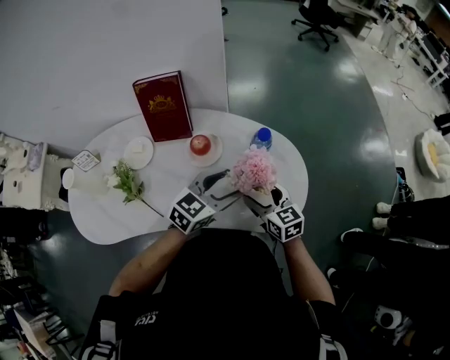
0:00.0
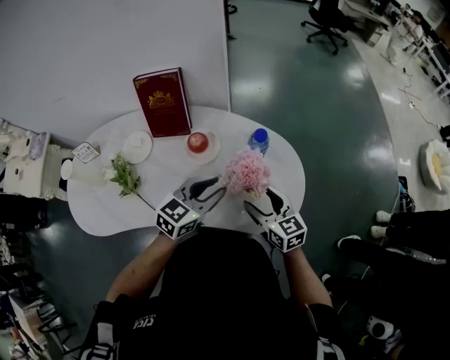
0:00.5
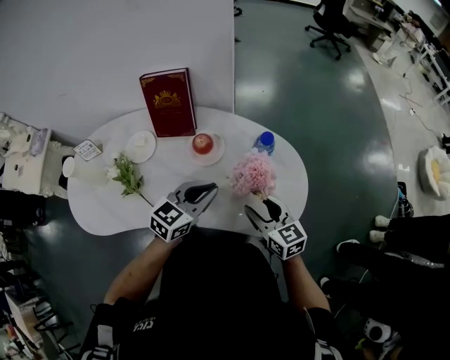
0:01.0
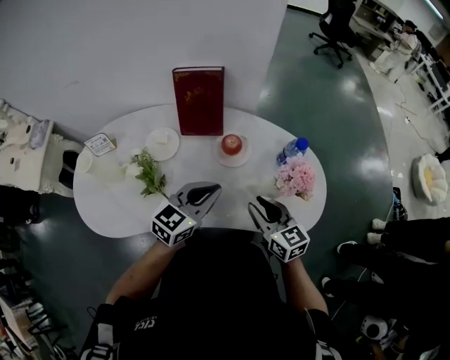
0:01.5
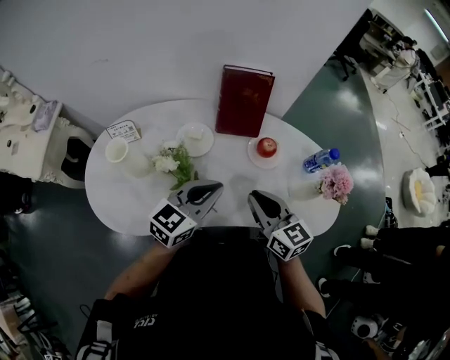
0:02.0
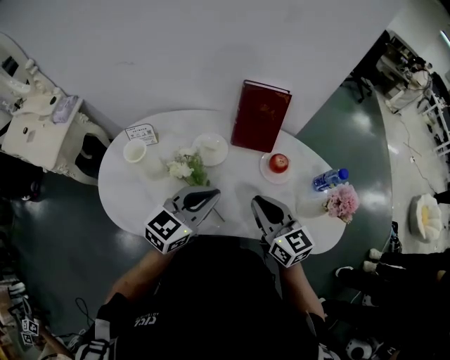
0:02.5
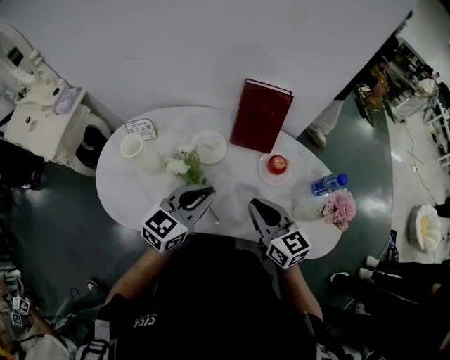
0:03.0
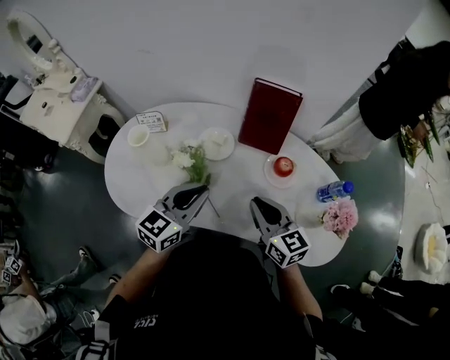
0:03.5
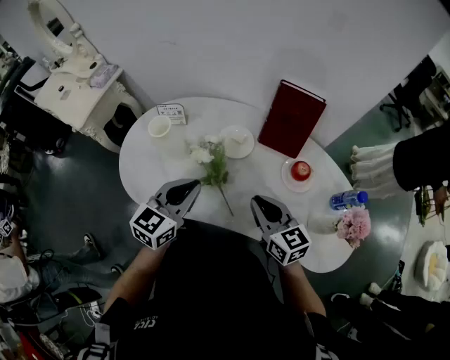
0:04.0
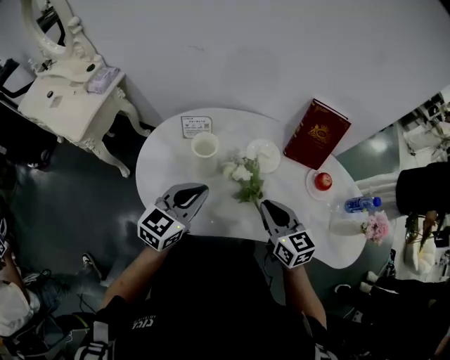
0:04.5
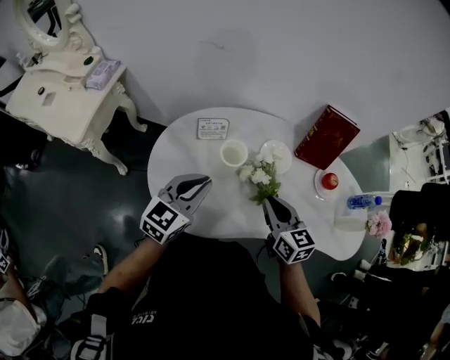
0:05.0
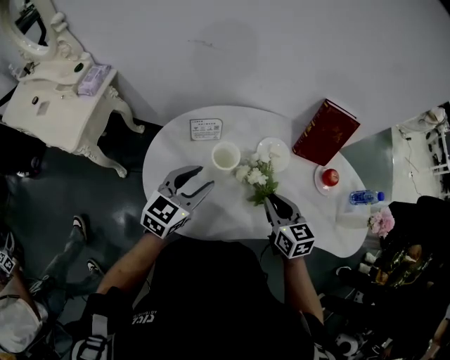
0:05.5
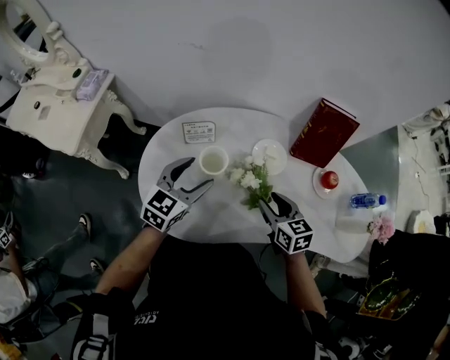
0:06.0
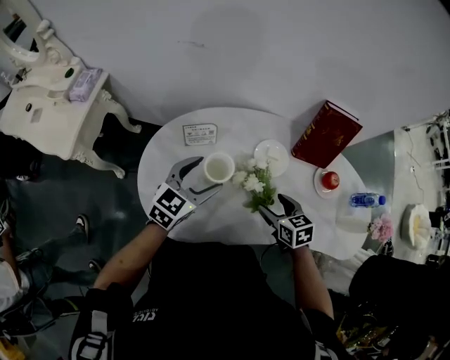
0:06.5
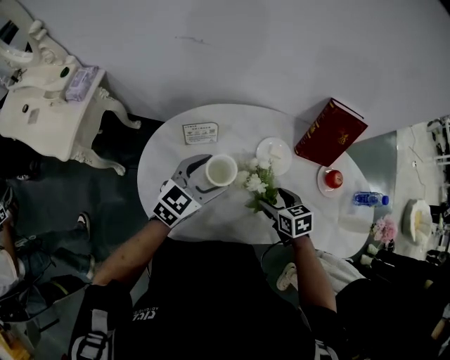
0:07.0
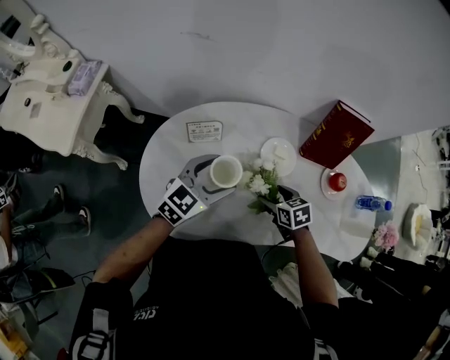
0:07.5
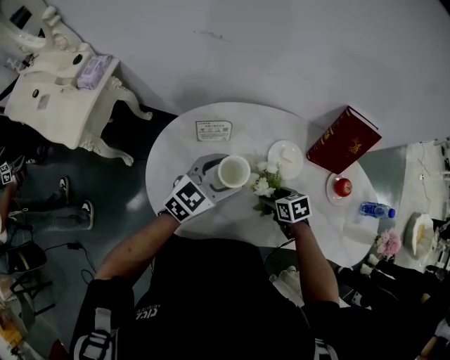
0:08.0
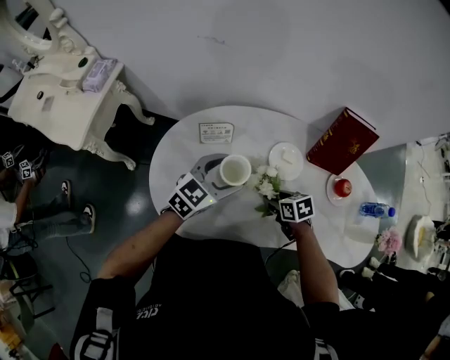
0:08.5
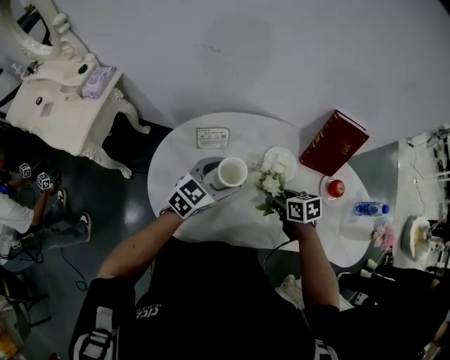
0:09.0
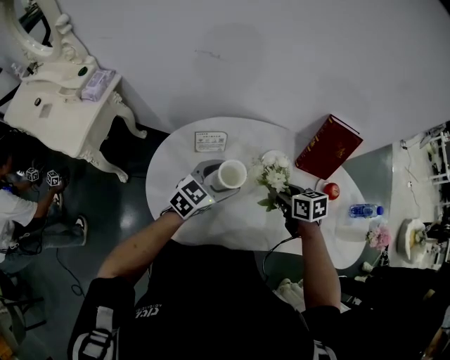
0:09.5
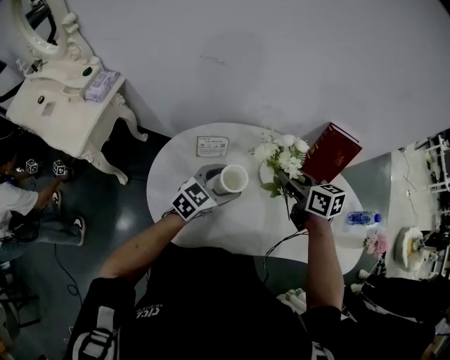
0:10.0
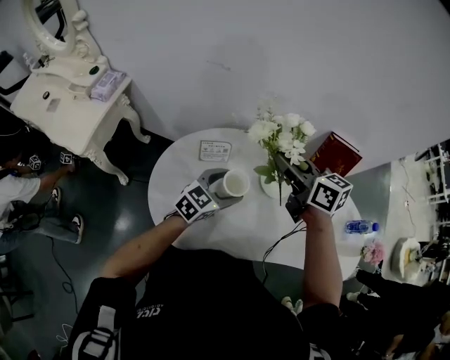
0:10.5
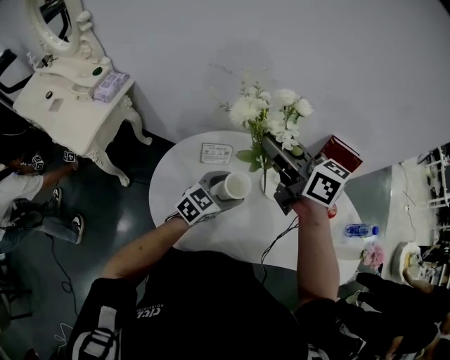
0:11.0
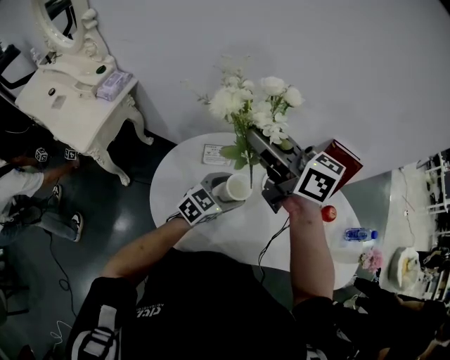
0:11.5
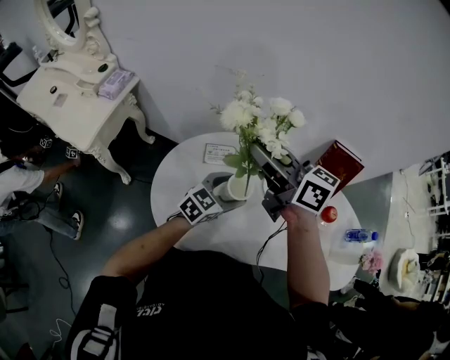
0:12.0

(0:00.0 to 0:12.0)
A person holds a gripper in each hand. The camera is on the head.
0:00.0 - 0:02.0: The two grippers go about 30 cm to the left. The left gripper closes up. The right gripper closes its fingers.
0:02.0 - 0:04.0: The right gripper moves some 5 cm, while the left gripper heads to the left, covering roughly 10 cm, and turns by about 30 degrees.
0:04.0 - 0:06.0: The right gripper heads to the left, downward and forward, covering roughly 20 cm, and turns by about 20 degrees. Meanwhile the left gripper goes approximately 25 cm to the left and forward, and opens its fingers.
0:06.0 - 0:08.0: The left gripper moves approximately 5 cm. The right gripper travels downward by roughly 15 cm, swivels some 30 degrees, and opens its fingers.
0:08.0 - 0:10.0: The right gripper travels upward by approximately 25 cm, points its fingers about 30 degrees further upward, and closes.
0:10.0 - 0:12.0: The right gripper is displaced to the left and upward by roughly 25 cm, and swivels approximately 30 degrees.

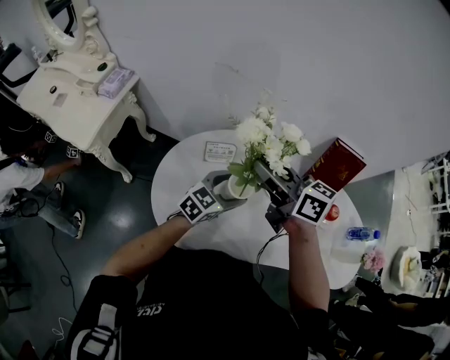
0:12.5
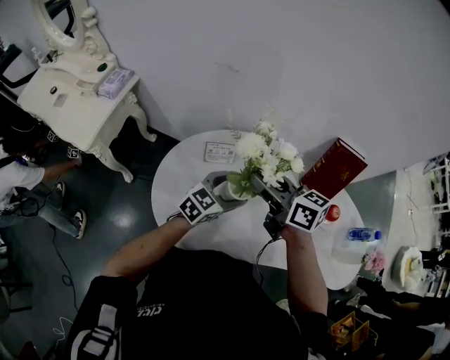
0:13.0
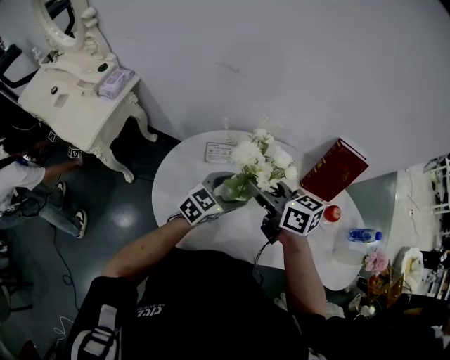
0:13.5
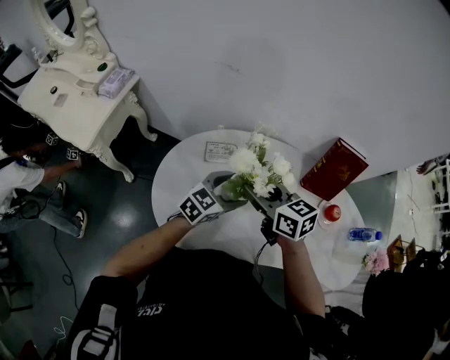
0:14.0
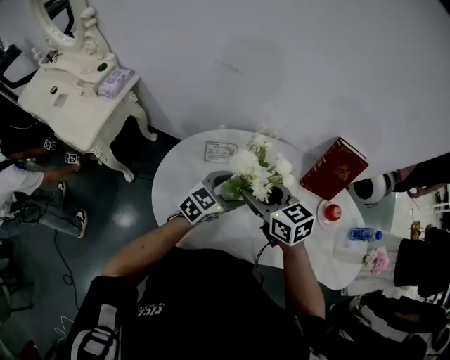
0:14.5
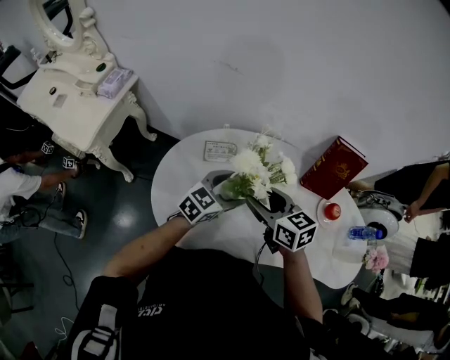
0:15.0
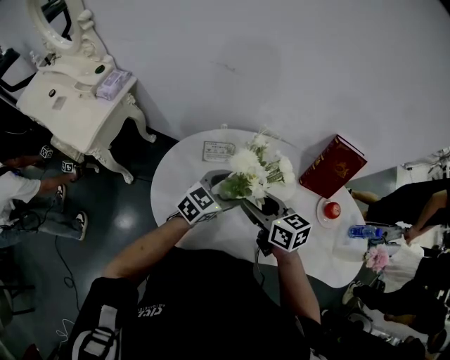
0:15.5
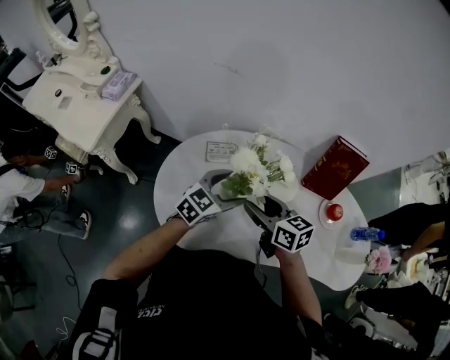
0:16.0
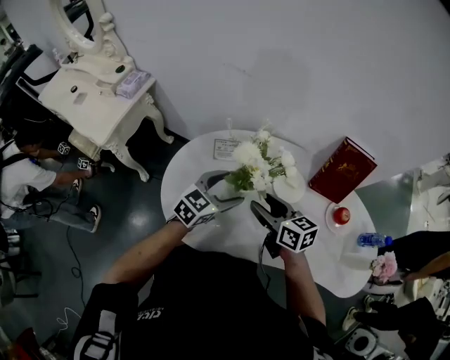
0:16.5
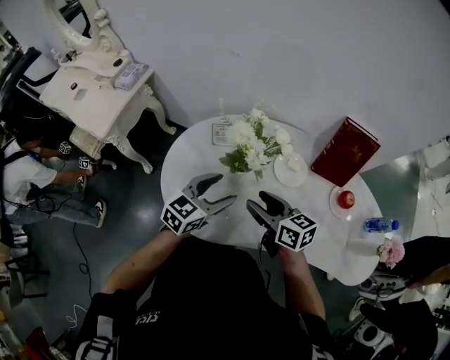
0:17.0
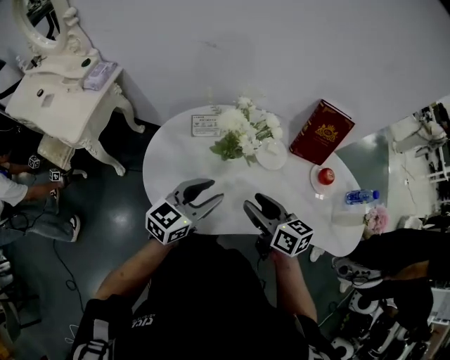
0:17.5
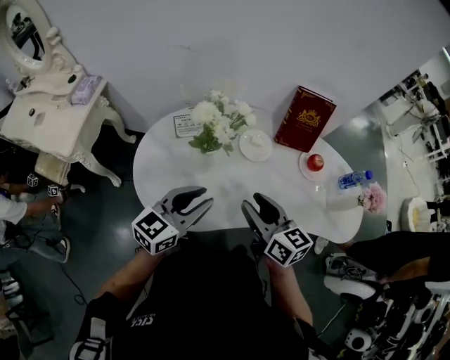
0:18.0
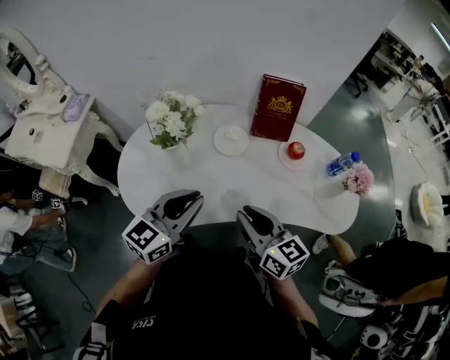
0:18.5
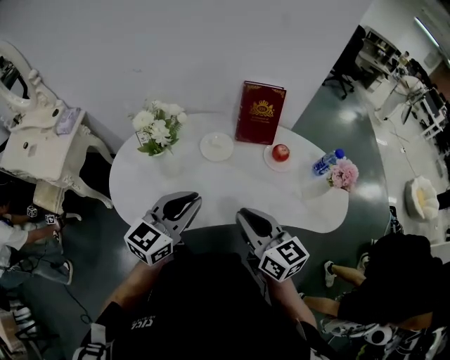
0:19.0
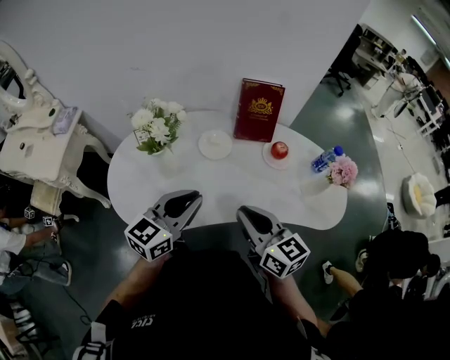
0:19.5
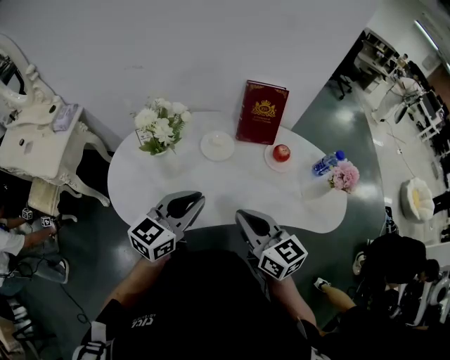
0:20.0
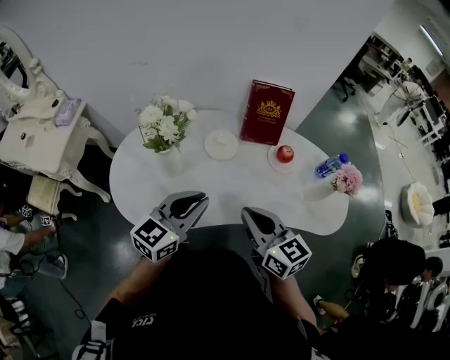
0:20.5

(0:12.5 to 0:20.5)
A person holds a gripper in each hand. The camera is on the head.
0:12.5 - 0:14.5: The right gripper moves downward, approximately 10 cm, and swivels some 30 degrees.
0:14.5 - 0:16.5: The right gripper changes place by some 5 cm.
0:16.5 - 0:18.5: The right gripper shifts about 25 cm backward and to the right, turns by about 20 degrees, and closes its fingers; the left gripper shifts roughly 25 cm backward, upward and to the right, and closes its fingers.
0:18.5 - 0:20.5: The grippers stay close to where they were, moving slightly.

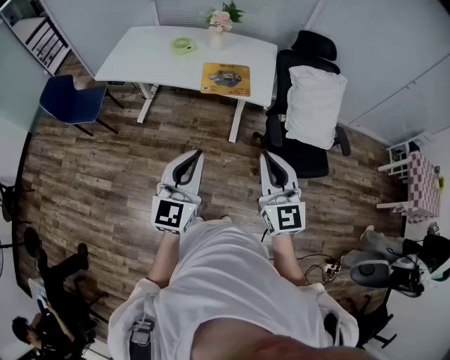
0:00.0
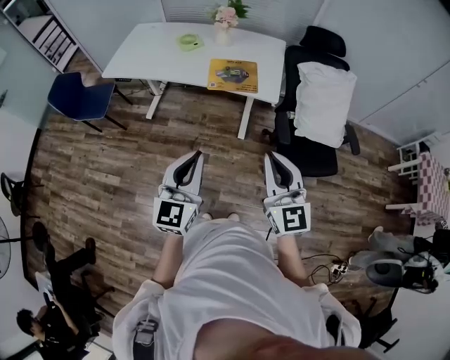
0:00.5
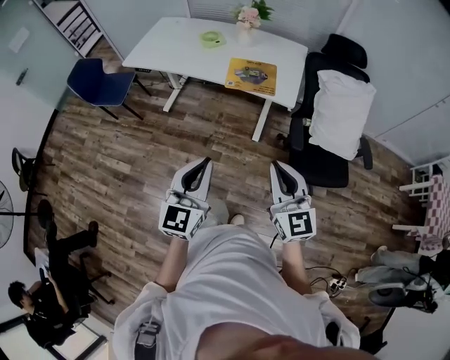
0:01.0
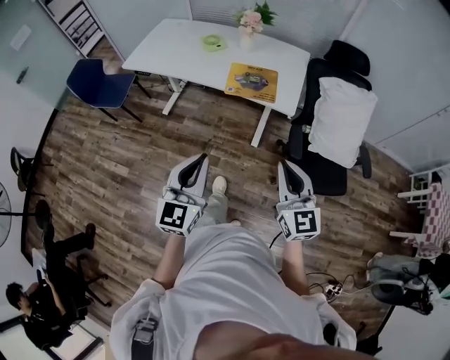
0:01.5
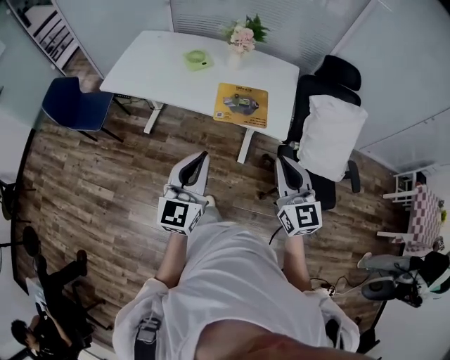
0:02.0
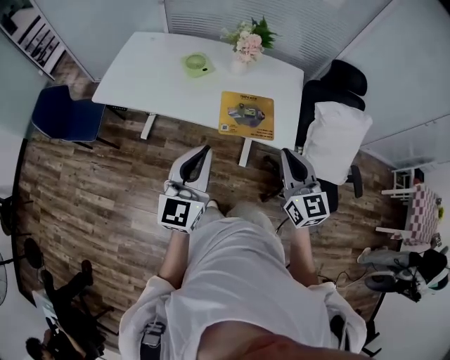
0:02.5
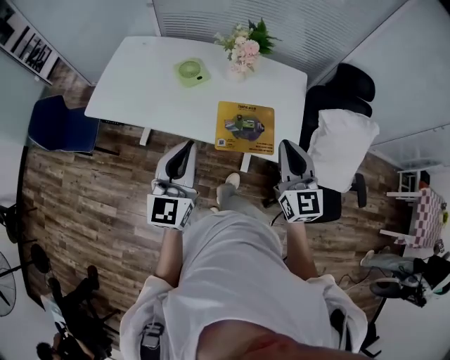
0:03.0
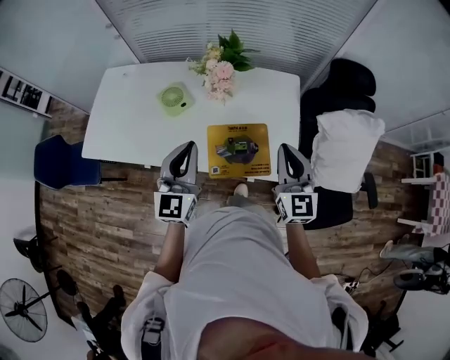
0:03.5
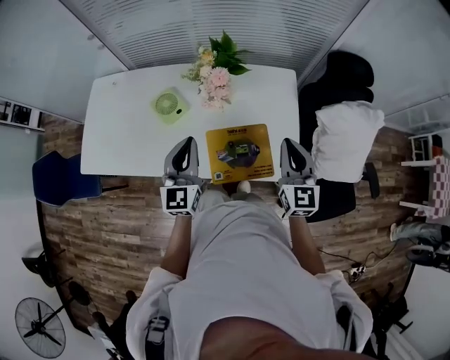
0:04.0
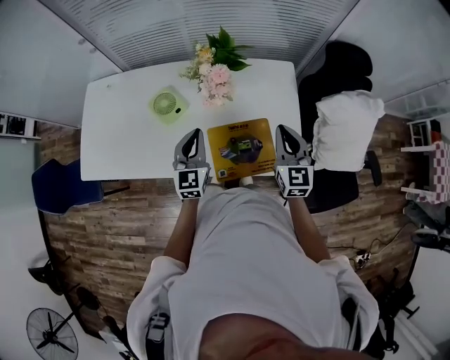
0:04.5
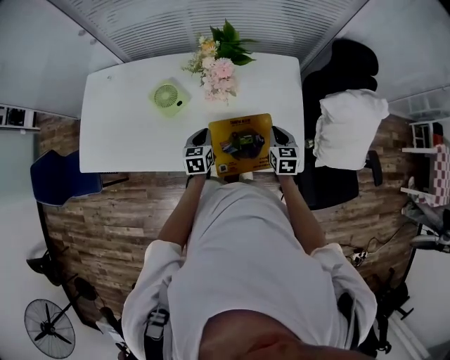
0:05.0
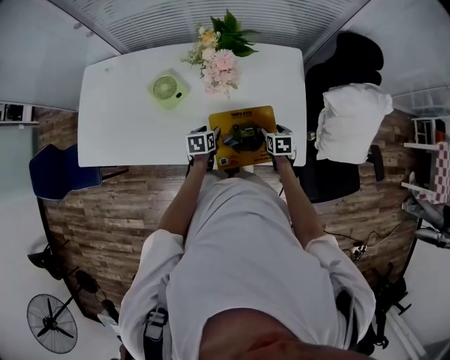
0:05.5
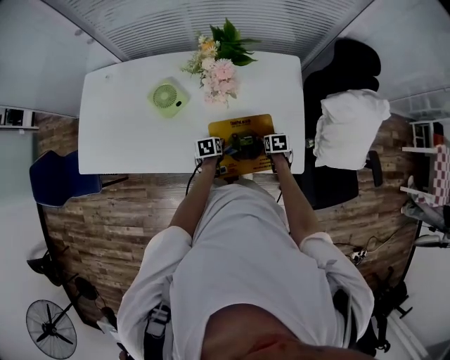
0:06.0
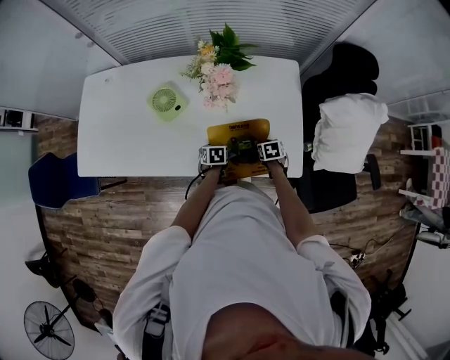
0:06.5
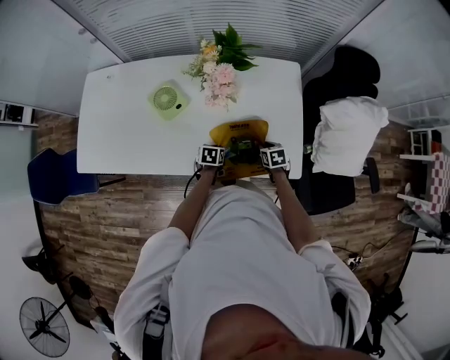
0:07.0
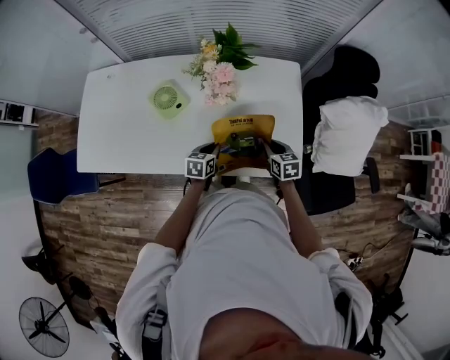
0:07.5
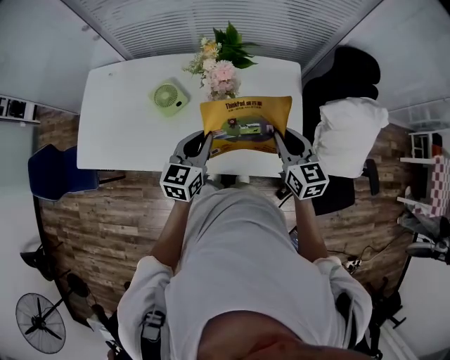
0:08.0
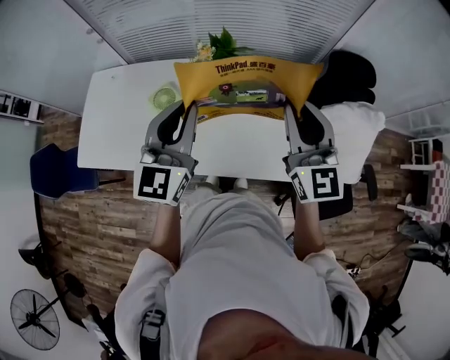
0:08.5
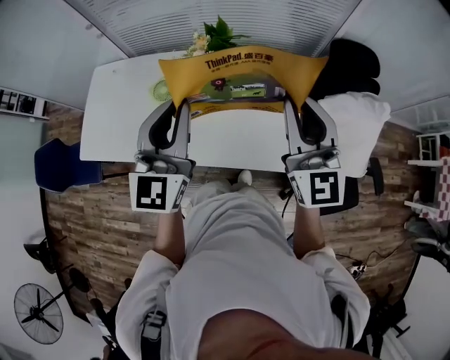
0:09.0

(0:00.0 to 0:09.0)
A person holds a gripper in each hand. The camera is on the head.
0:00.0 - 0:02.0: The two grippers go about 20 cm forward.
0:02.0 - 0:04.5: The pair of grippers is taken forward, approximately 40 cm. The right gripper changes its angle by roughly 20 degrees.
0:04.5 - 0:07.0: Both grippers travel together downward, roughly 30 cm. The left gripper angles its fingers downward, by approximately 50 degrees, and opens, then closes once more. Meanwhile the right gripper tilts its fingers about 50 degrees downward, and opens, then closes once more.
0:07.0 - 0:09.0: The grippers both shift upward by some 50 cm. The left gripper tilts its fingers about 60 degrees upward. Meanwhile the right gripper points its fingers roughly 70 degrees further upward.
